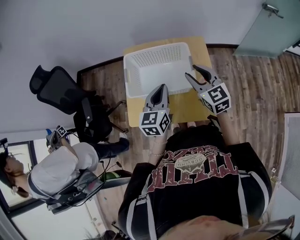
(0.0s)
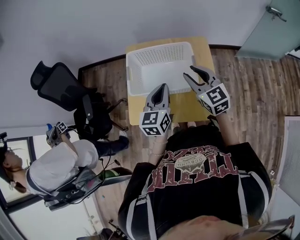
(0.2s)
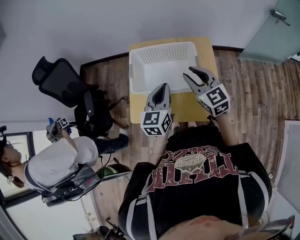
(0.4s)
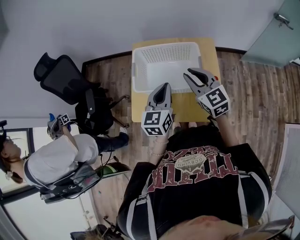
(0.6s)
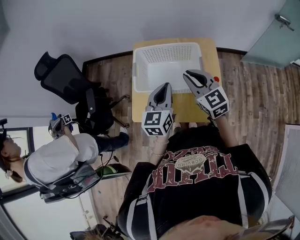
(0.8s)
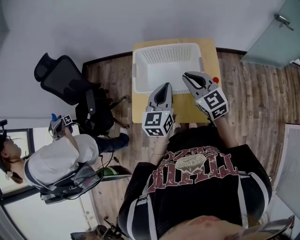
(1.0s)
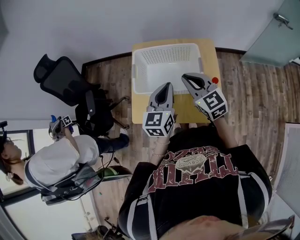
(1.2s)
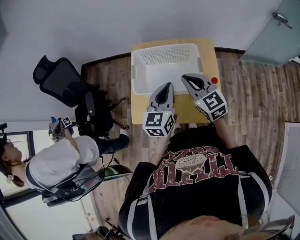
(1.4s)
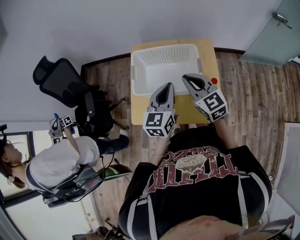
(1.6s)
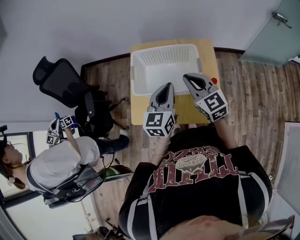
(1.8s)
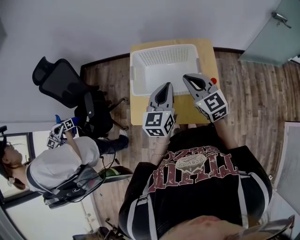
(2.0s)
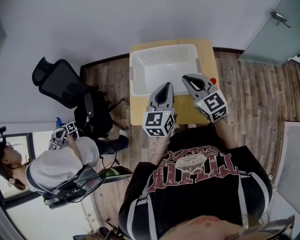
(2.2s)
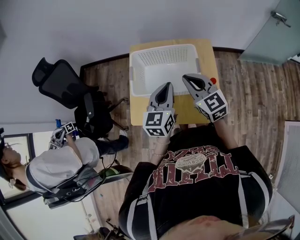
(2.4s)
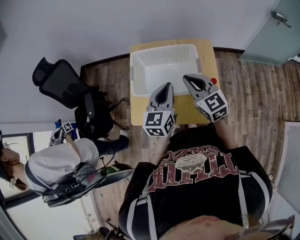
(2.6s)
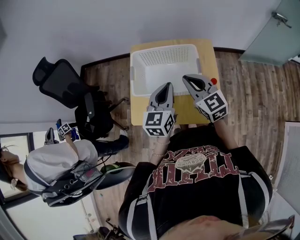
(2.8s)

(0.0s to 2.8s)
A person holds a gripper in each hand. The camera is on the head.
0.0s - 1.4s: The right gripper is displaced to the left by approximately 5 cm, and closes.
1.4s - 2.8s: The grippers make only small movements.

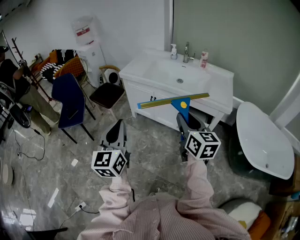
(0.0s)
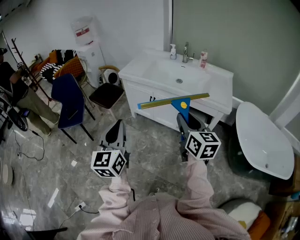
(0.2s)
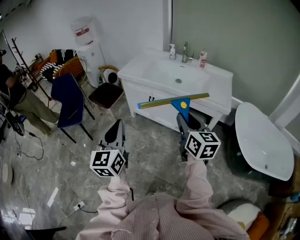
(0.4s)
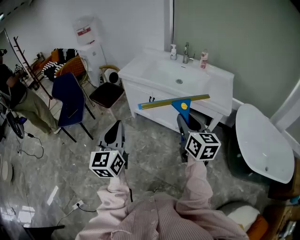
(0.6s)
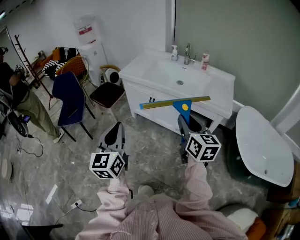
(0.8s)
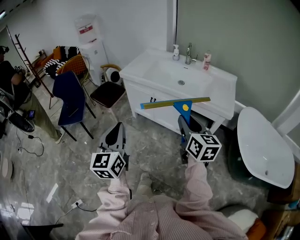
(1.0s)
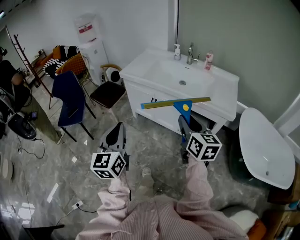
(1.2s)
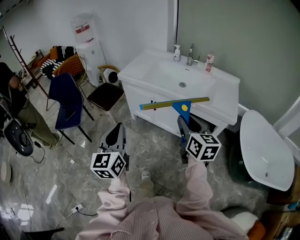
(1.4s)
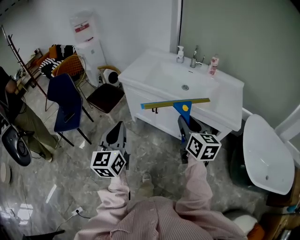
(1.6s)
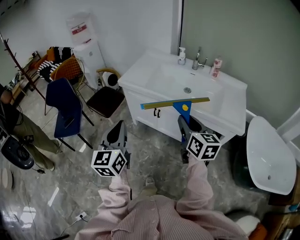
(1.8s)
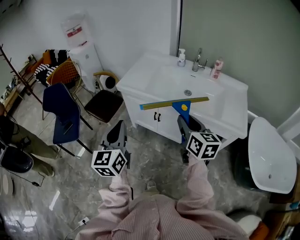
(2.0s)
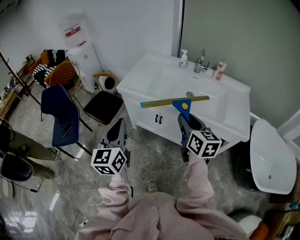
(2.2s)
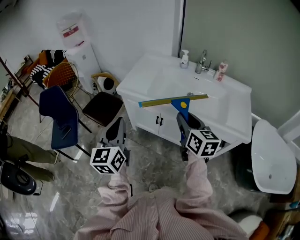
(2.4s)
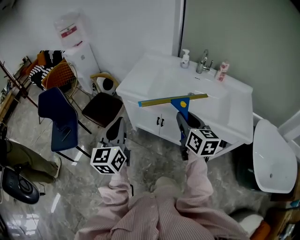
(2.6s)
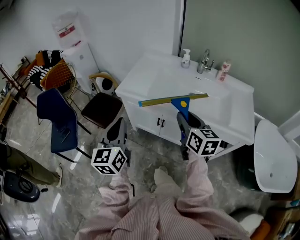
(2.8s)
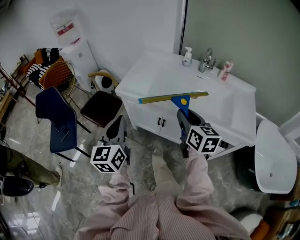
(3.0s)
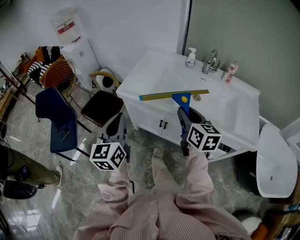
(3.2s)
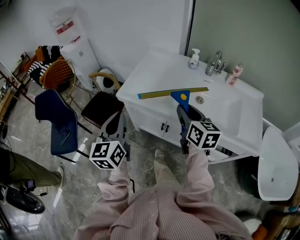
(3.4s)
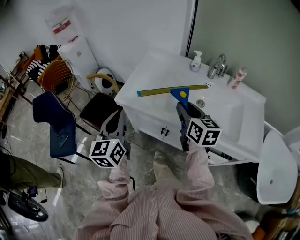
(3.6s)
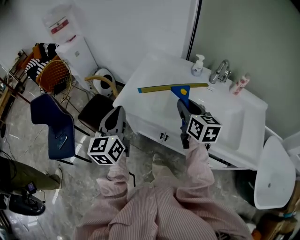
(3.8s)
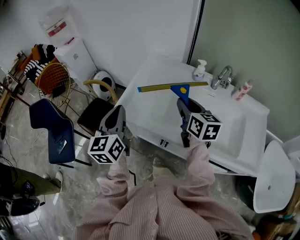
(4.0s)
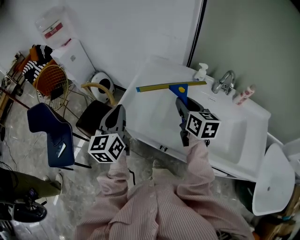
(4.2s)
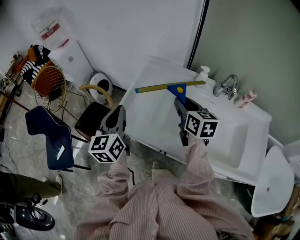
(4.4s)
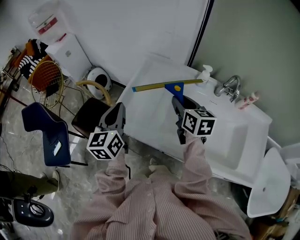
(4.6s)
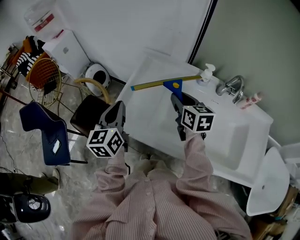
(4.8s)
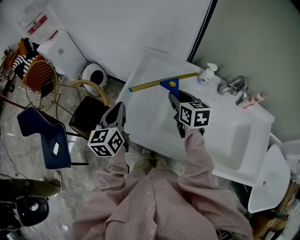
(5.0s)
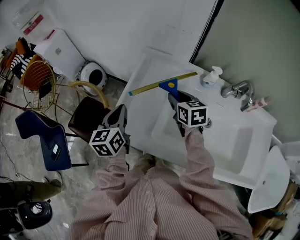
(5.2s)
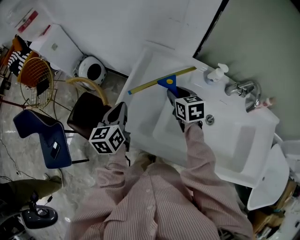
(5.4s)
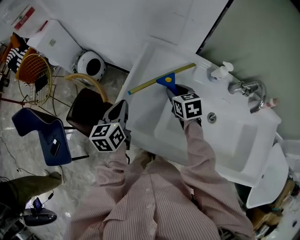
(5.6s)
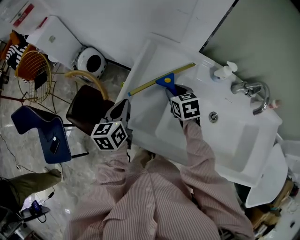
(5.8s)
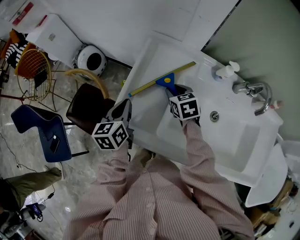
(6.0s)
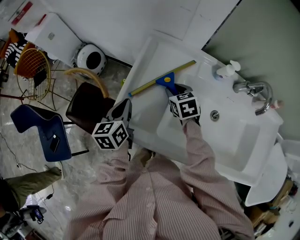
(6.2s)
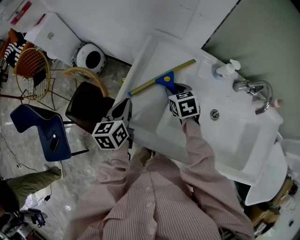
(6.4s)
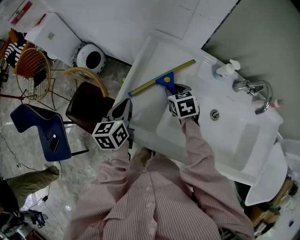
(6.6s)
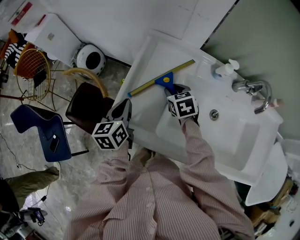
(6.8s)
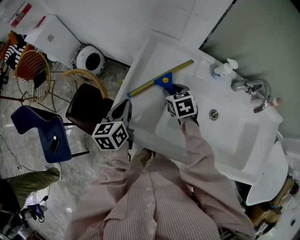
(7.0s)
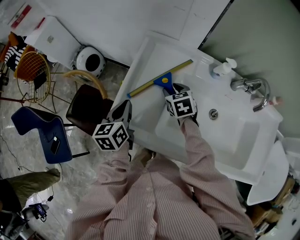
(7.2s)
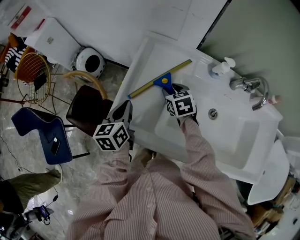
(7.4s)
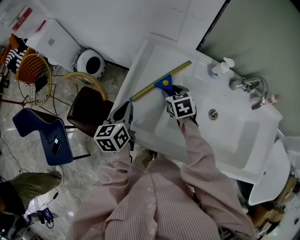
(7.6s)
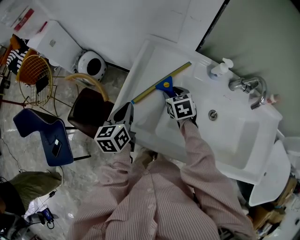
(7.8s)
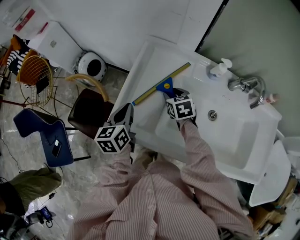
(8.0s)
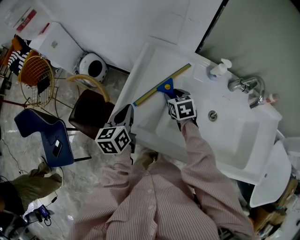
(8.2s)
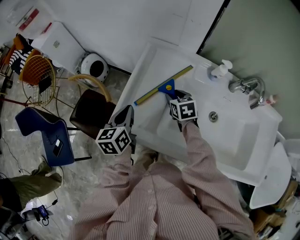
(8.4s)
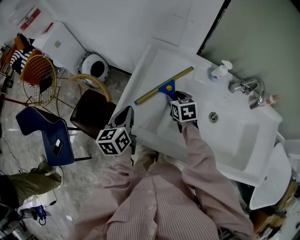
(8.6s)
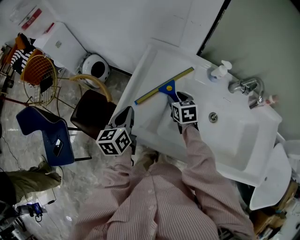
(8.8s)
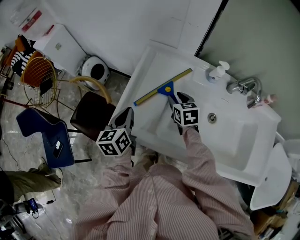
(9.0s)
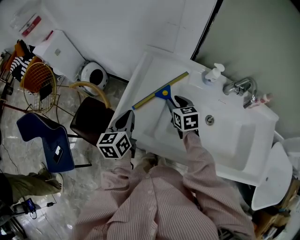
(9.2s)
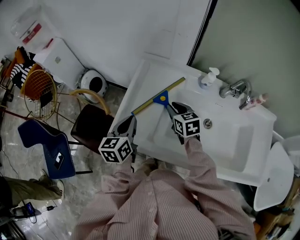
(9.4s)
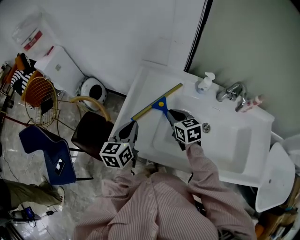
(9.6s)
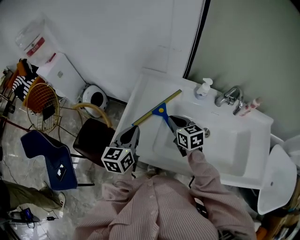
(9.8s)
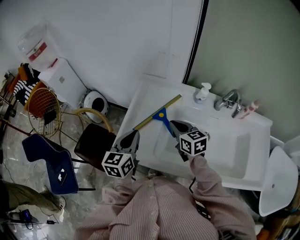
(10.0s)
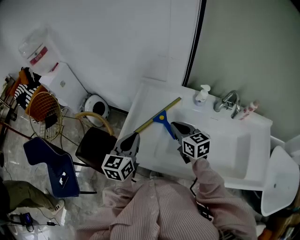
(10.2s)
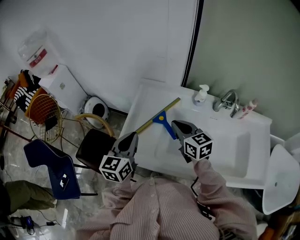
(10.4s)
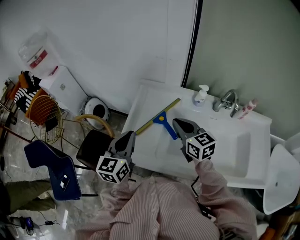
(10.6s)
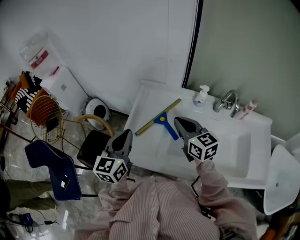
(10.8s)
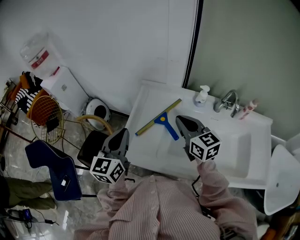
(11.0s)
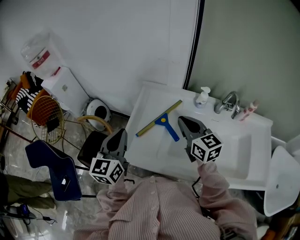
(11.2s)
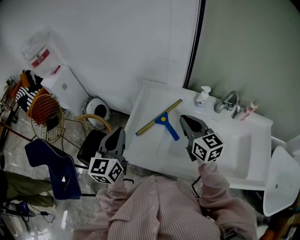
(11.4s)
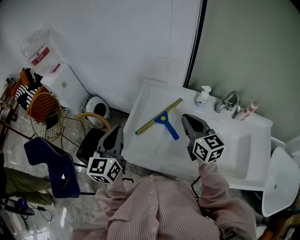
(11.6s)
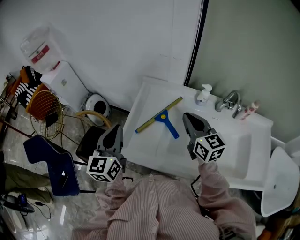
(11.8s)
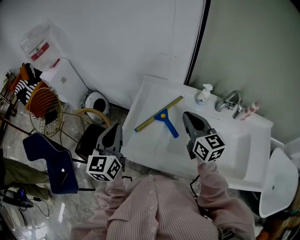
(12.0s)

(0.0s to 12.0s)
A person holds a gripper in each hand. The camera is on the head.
0.0s - 1.6s: The grippers both shift forward by some 15 cm.
1.6s - 3.0s: The grippers both shift forward by about 25 cm.
3.0s - 4.4s: Both grippers move forward, some 30 cm.
4.4s - 6.0s: The grippers both shift downward and forward by some 20 cm. The right gripper rotates some 30 degrees; the left gripper turns by some 20 degrees.
6.0s - 9.0s: The grippers make only small movements.
9.0s - 10.4s: The right gripper moves upward and backward, some 15 cm, turns by about 20 degrees, and closes; the left gripper moves upward, about 10 cm, and turns by approximately 20 degrees.
10.4s - 12.0s: The right gripper goes about 5 cm upward; the left gripper goes about 10 cm to the left and upward.

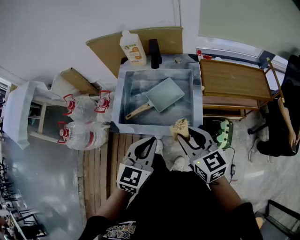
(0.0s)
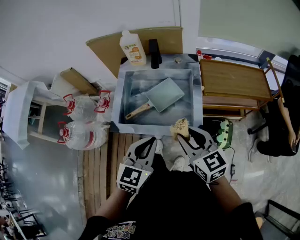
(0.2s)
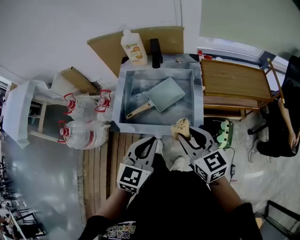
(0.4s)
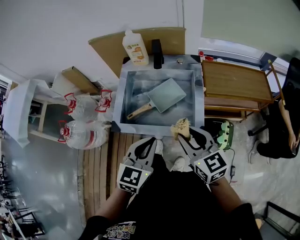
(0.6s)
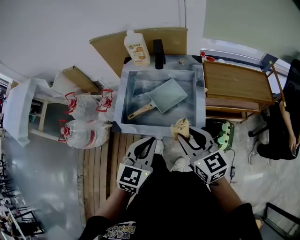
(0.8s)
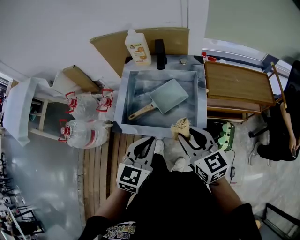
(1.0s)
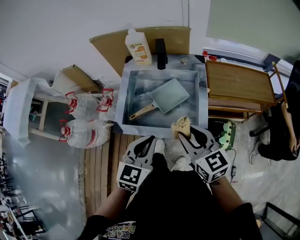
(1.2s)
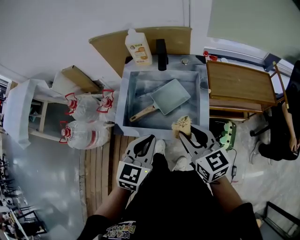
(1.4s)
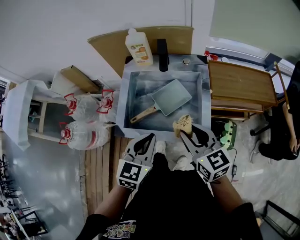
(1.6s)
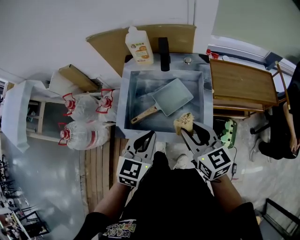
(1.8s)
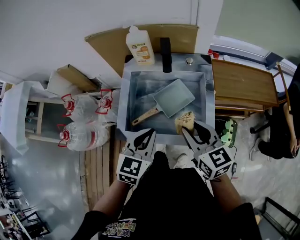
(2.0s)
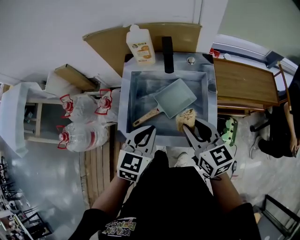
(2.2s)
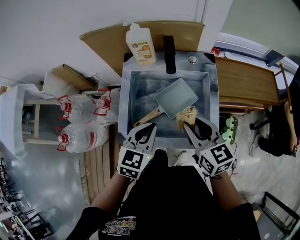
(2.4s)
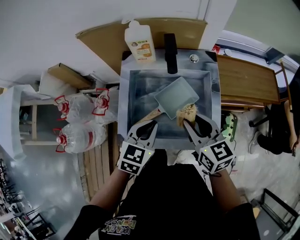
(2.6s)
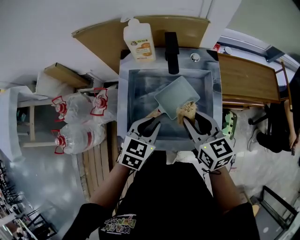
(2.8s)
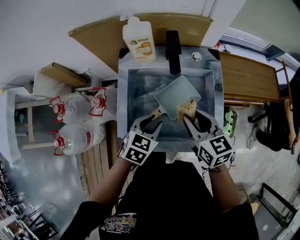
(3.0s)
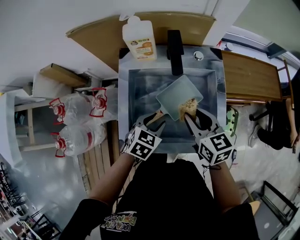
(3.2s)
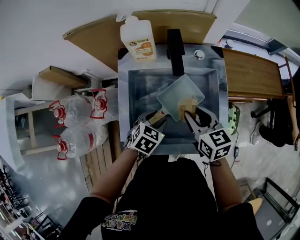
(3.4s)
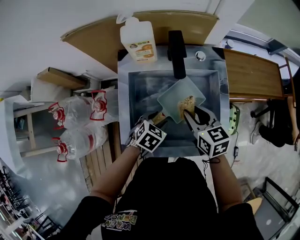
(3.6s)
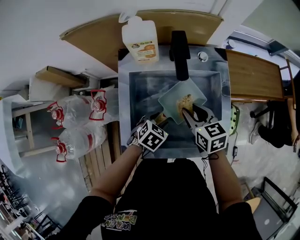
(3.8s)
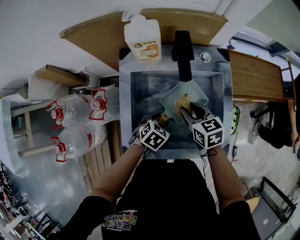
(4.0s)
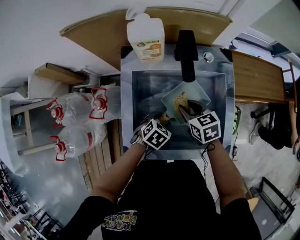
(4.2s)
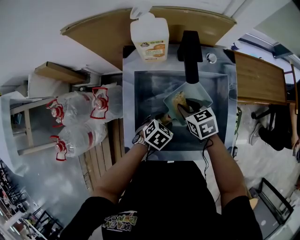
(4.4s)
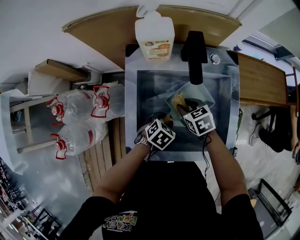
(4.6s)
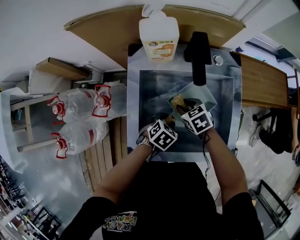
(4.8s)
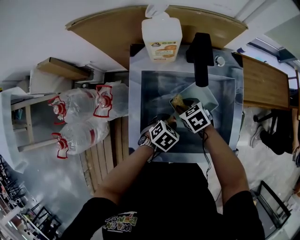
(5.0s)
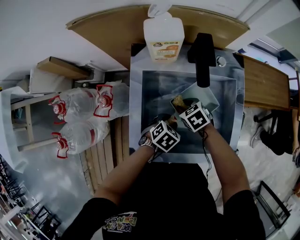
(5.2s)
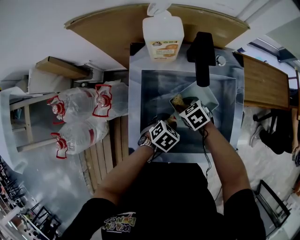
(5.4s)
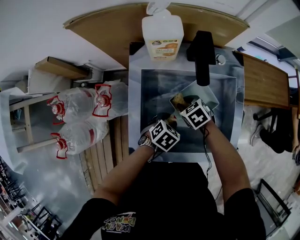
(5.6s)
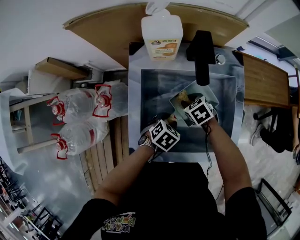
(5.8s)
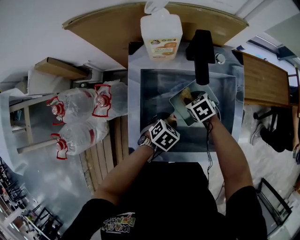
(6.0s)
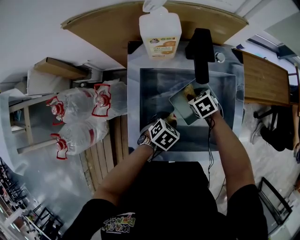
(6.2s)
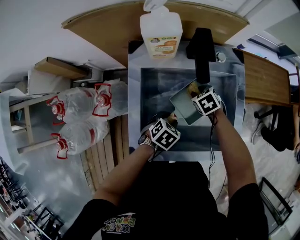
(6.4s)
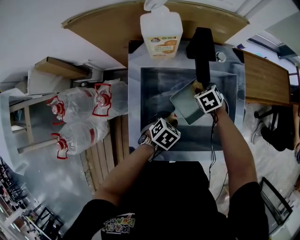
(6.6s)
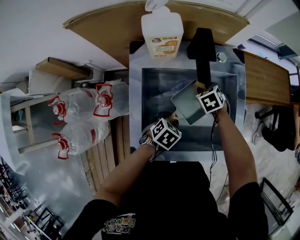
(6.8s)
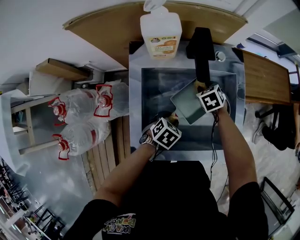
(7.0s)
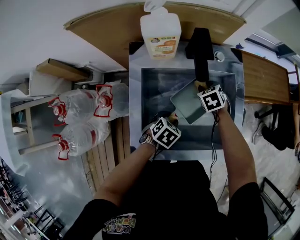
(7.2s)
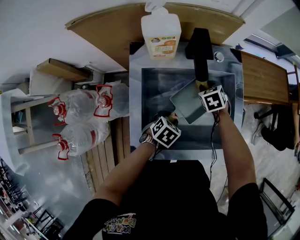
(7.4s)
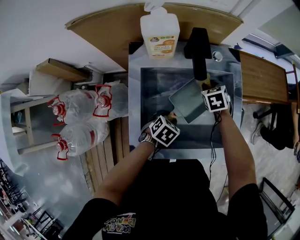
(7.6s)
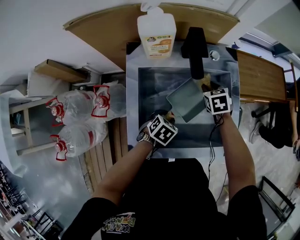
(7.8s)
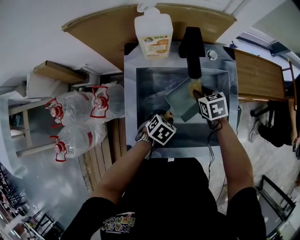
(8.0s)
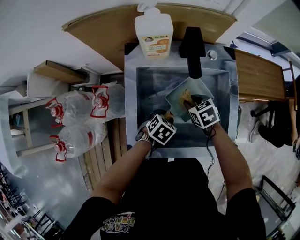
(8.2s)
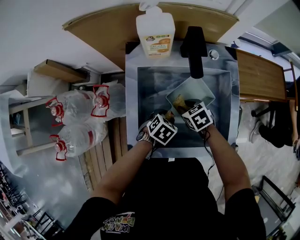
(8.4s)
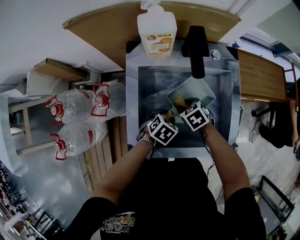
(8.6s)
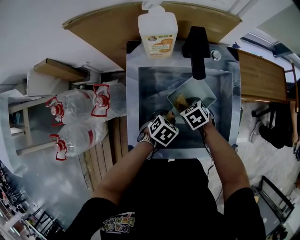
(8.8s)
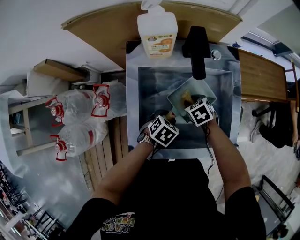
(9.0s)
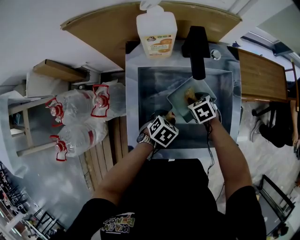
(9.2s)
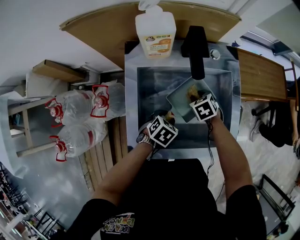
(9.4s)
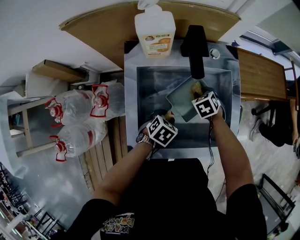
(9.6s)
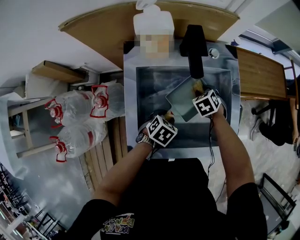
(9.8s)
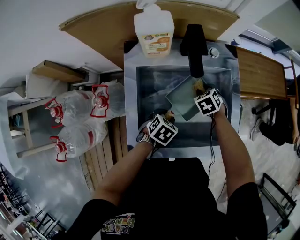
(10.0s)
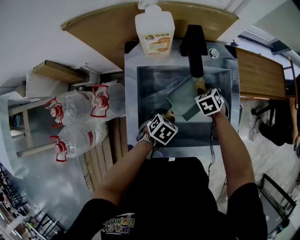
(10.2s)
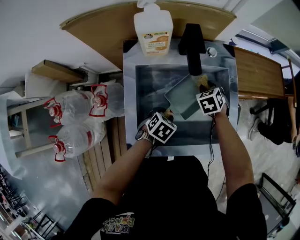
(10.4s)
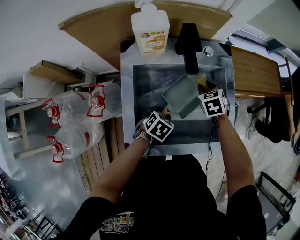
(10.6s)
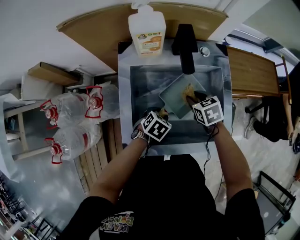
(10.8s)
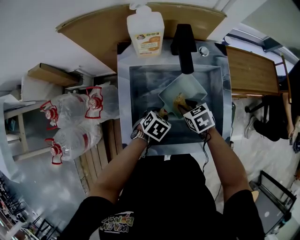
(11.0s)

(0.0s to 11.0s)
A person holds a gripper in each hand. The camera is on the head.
0.0s - 1.6s: Both grippers travel together forward, roughly 5 cm.
1.6s - 3.2s: The left gripper is displaced downward and forward by approximately 20 cm, changes its angle by some 30 degrees, and opens its fingers. The right gripper travels forward and downward by roughly 15 cm.
3.2s - 4.8s: The right gripper heads downward and to the left, covering some 20 cm, and changes its angle by some 30 degrees. The left gripper moves downward, about 10 cm.
4.8s - 6.2s: The right gripper moves approximately 5 cm.
6.2s - 7.8s: The right gripper is displaced to the right, forward and upward by roughly 10 cm, and changes its angle by roughly 20 degrees.
7.8s - 9.4s: The right gripper shifts approximately 10 cm downward and backward.
9.4s - 11.0s: The right gripper shifts by approximately 10 cm.
